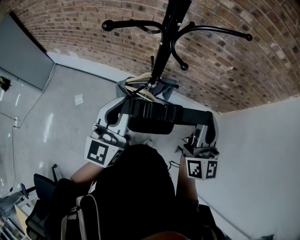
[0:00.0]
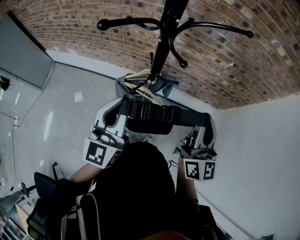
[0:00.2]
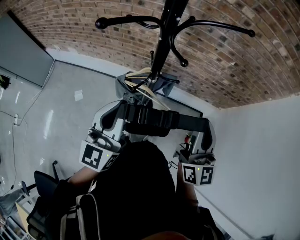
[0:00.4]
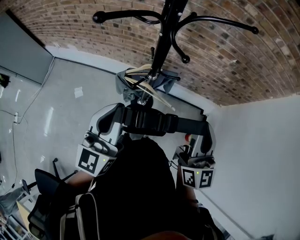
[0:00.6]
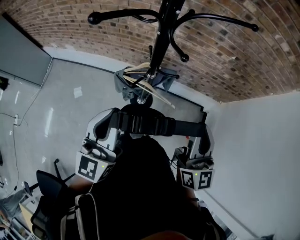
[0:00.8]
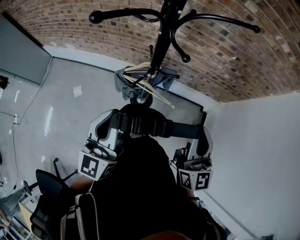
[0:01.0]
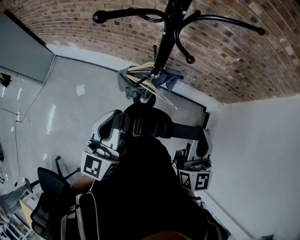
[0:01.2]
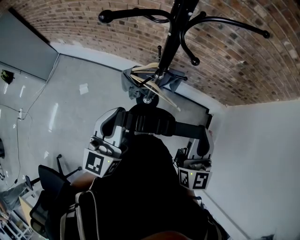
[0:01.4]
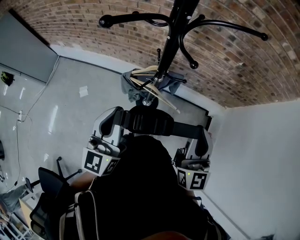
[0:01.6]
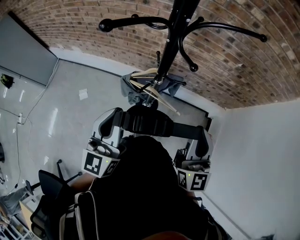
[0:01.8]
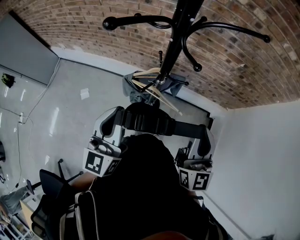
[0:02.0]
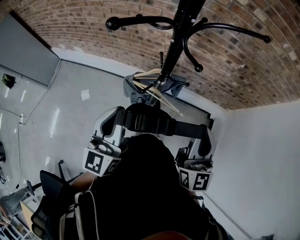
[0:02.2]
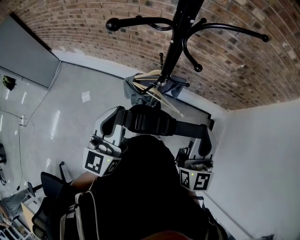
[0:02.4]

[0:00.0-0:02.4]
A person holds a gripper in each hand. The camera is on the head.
0:00.0 to 0:01.2: The left gripper changes place by about 5 cm, while the right gripper goes about 5 cm backward.
0:01.2 to 0:02.4: The grippers move only a little.

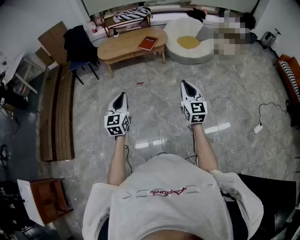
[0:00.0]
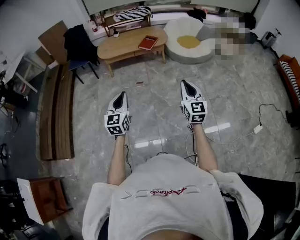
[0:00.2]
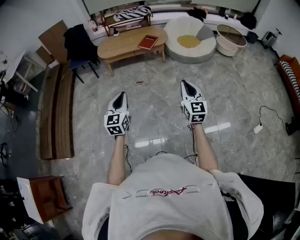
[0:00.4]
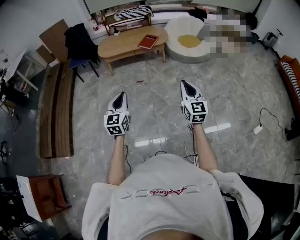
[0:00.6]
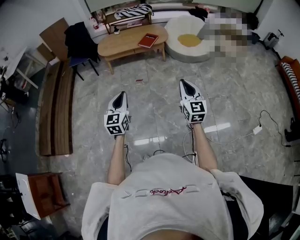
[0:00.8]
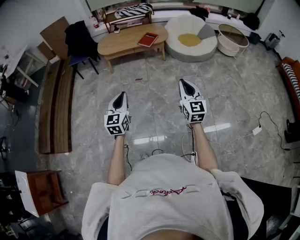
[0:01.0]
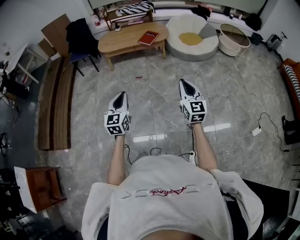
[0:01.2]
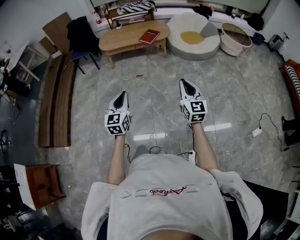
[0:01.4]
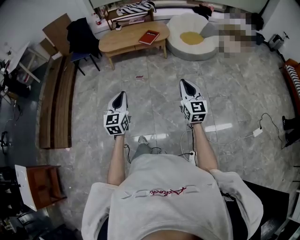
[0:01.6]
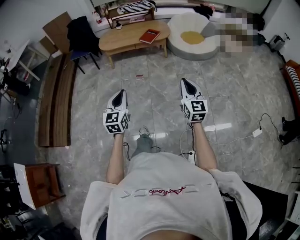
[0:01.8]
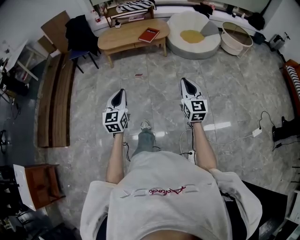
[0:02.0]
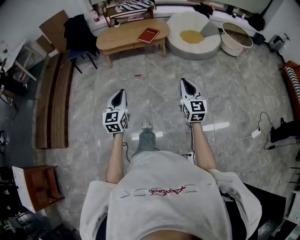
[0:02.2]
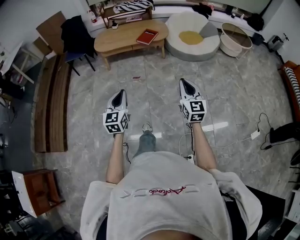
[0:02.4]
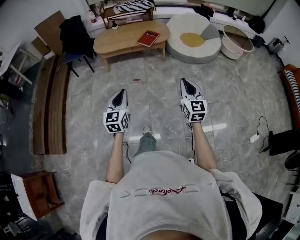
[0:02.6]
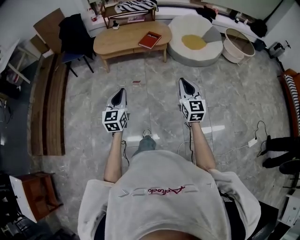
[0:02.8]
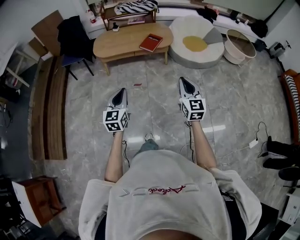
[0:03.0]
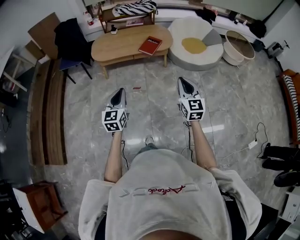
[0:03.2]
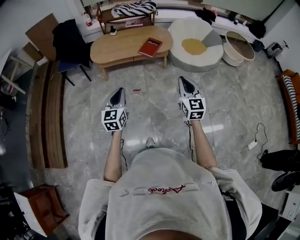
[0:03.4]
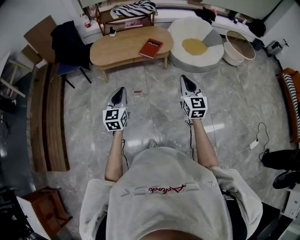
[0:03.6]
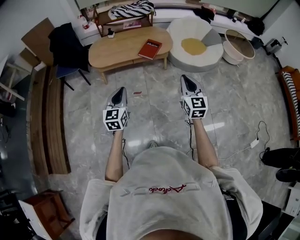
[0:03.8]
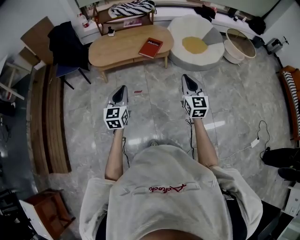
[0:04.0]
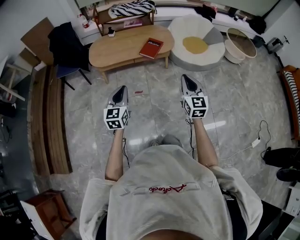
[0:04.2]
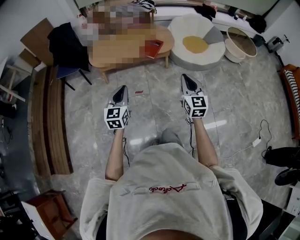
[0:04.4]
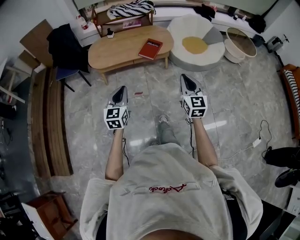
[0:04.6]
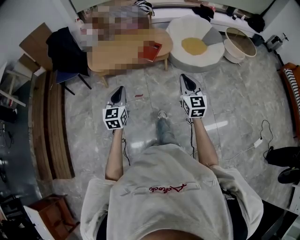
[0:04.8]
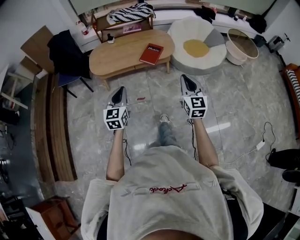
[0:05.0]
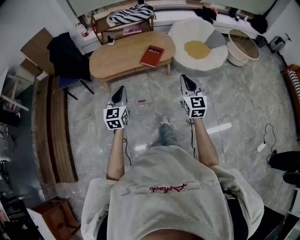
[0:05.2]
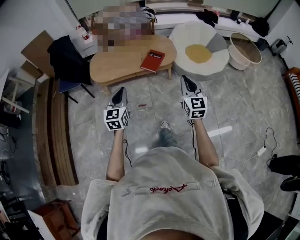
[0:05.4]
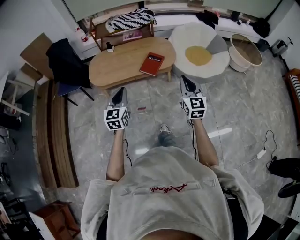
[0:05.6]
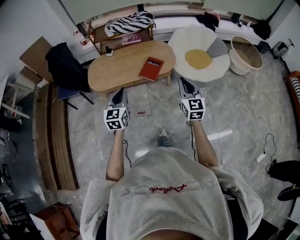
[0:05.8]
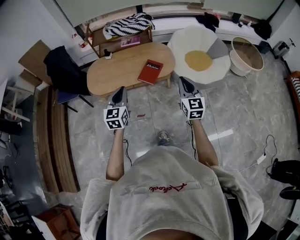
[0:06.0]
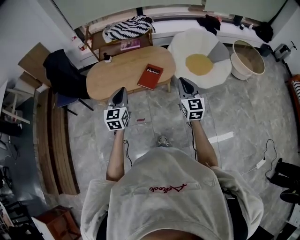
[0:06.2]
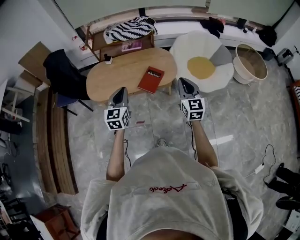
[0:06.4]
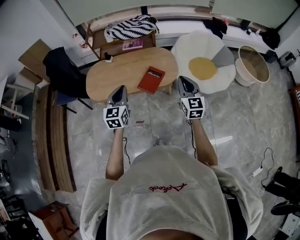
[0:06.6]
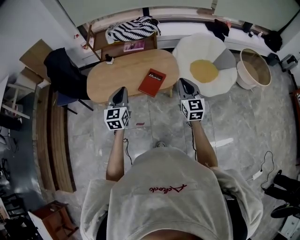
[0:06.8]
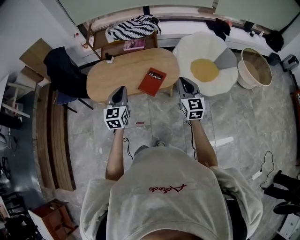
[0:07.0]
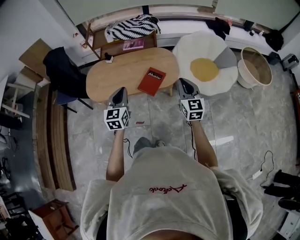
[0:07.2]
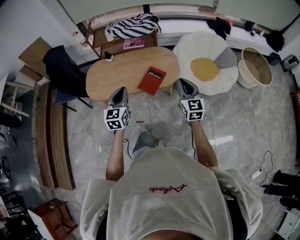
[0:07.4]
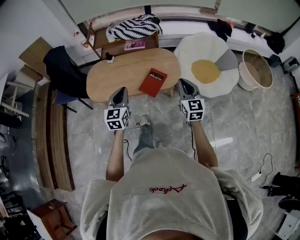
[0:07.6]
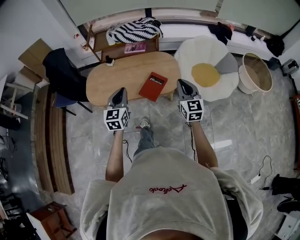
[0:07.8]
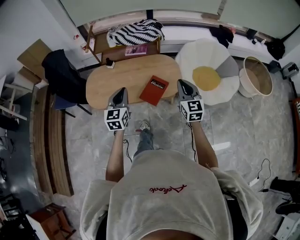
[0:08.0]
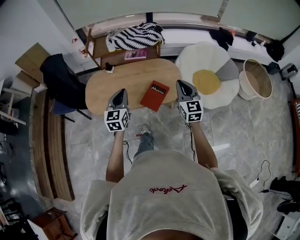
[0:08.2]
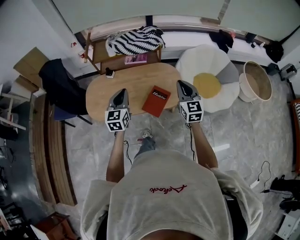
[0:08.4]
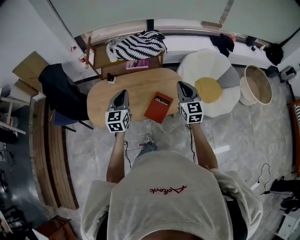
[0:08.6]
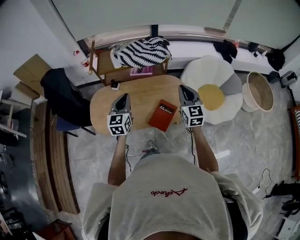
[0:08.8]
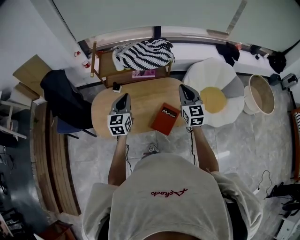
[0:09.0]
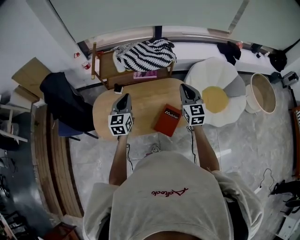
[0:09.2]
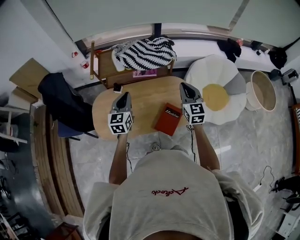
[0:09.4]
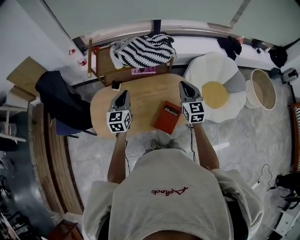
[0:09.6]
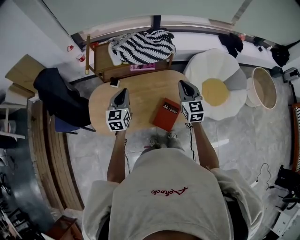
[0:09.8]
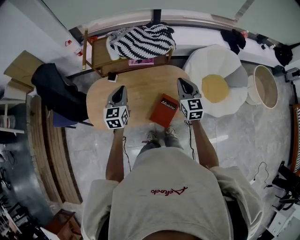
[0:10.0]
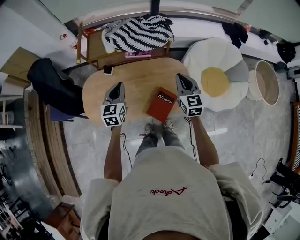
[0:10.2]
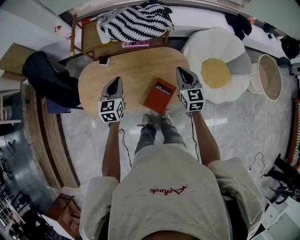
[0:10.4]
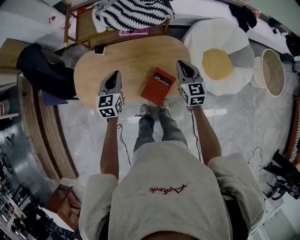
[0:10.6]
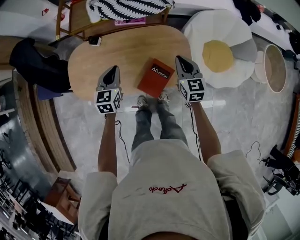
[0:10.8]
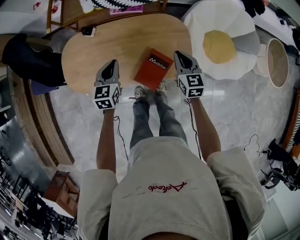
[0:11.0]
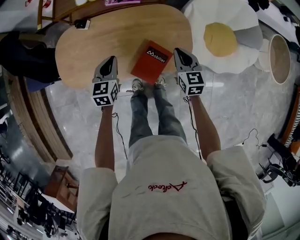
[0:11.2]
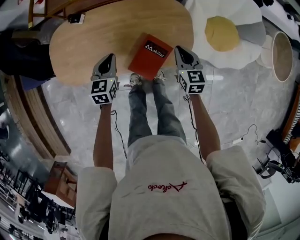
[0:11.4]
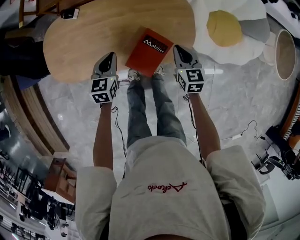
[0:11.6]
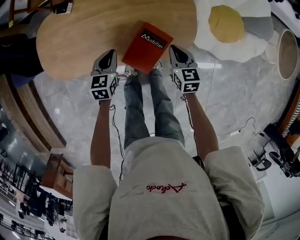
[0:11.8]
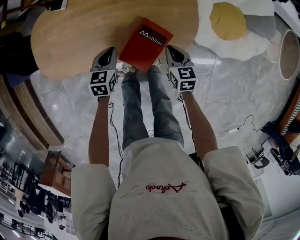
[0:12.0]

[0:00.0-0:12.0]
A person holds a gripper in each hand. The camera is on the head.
0:00.0 to 0:01.6: The grippers both shift to the right by roughly 5 cm.
0:01.6 to 0:03.0: The two grippers go some 25 cm forward.
0:03.0 to 0:04.4: The grippers both shift forward by about 15 cm.
0:04.4 to 0:06.0: The two grippers go approximately 25 cm forward.
0:06.0 to 0:07.6: The grippers both shift forward by some 15 cm.
0:07.6 to 0:09.0: The left gripper goes roughly 30 cm forward. Meanwhile the right gripper shifts roughly 30 cm forward and to the left.
0:09.0 to 0:10.4: The two grippers go roughly 10 cm downward and forward.
0:10.4 to 0:12.0: The grippers both shift downward by some 30 cm. The left gripper rotates approximately 20 degrees; the right gripper changes its angle by approximately 30 degrees.

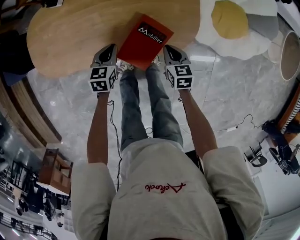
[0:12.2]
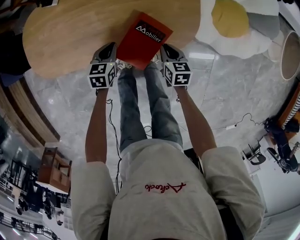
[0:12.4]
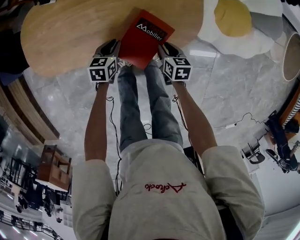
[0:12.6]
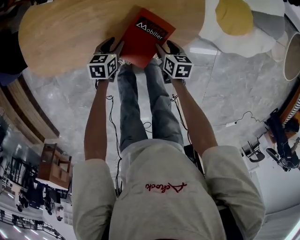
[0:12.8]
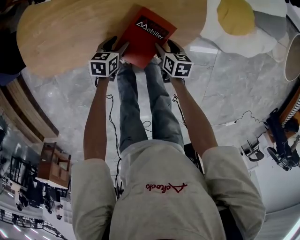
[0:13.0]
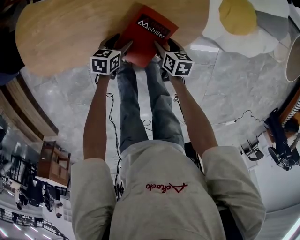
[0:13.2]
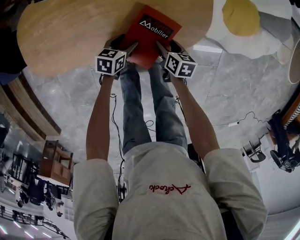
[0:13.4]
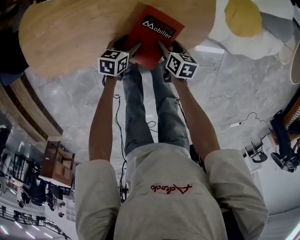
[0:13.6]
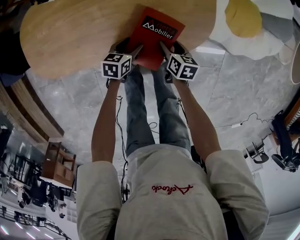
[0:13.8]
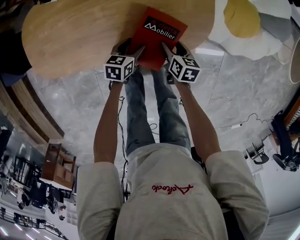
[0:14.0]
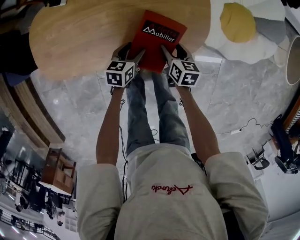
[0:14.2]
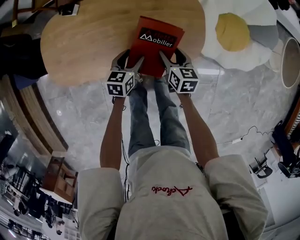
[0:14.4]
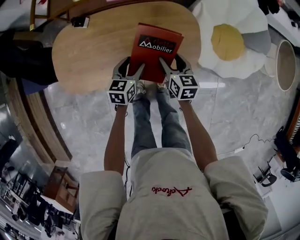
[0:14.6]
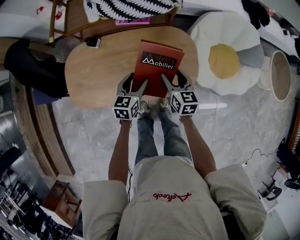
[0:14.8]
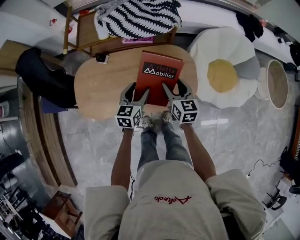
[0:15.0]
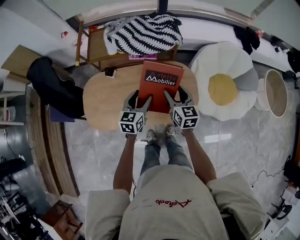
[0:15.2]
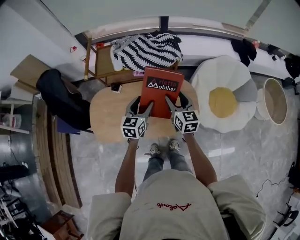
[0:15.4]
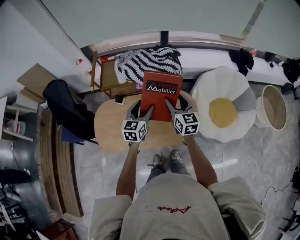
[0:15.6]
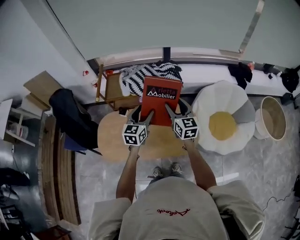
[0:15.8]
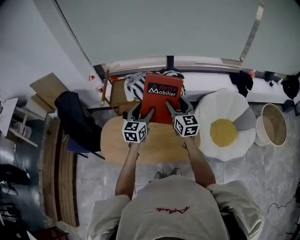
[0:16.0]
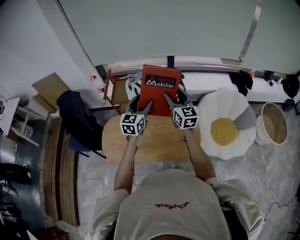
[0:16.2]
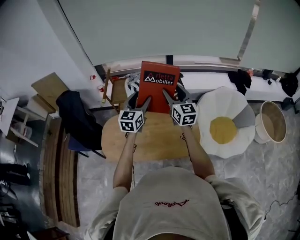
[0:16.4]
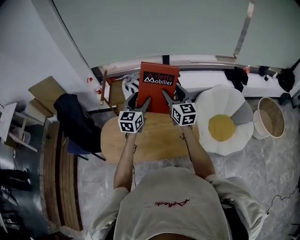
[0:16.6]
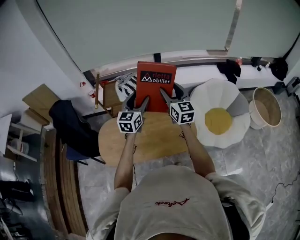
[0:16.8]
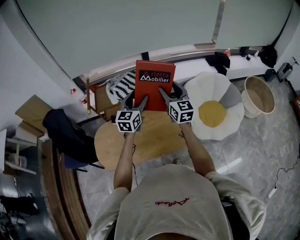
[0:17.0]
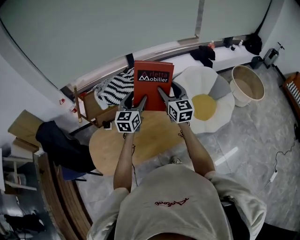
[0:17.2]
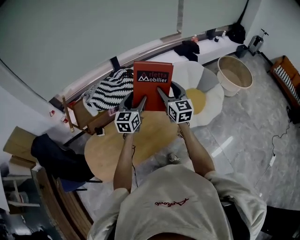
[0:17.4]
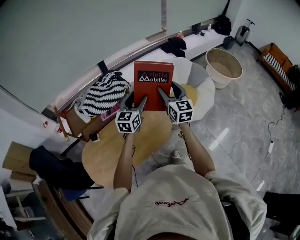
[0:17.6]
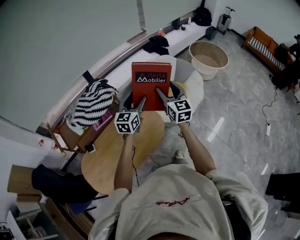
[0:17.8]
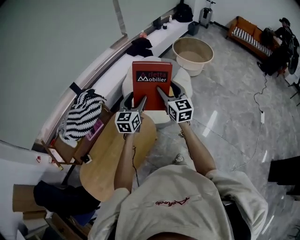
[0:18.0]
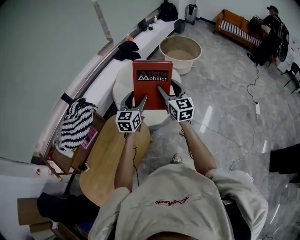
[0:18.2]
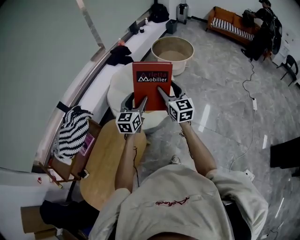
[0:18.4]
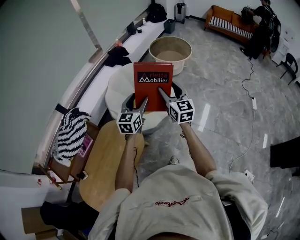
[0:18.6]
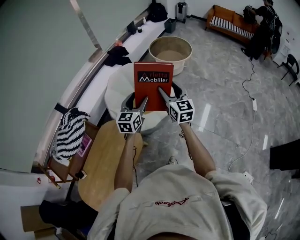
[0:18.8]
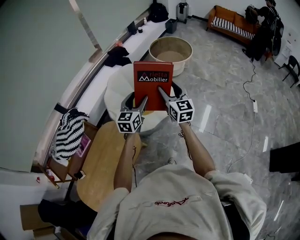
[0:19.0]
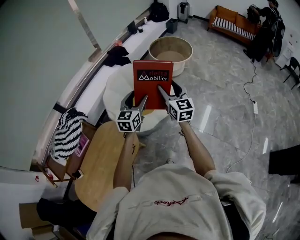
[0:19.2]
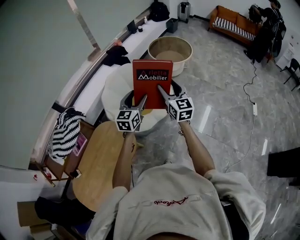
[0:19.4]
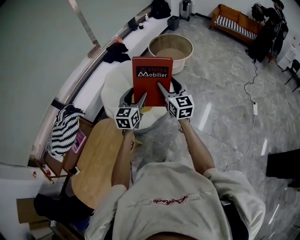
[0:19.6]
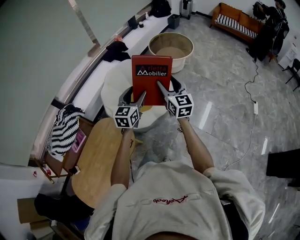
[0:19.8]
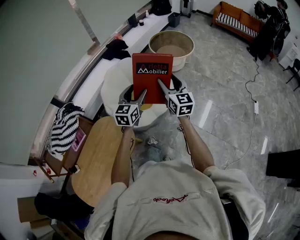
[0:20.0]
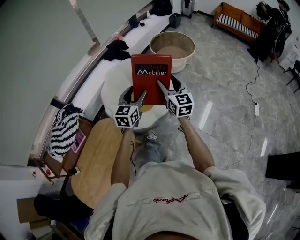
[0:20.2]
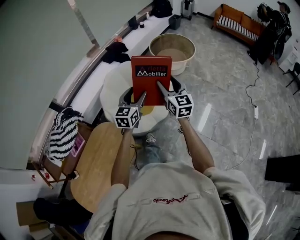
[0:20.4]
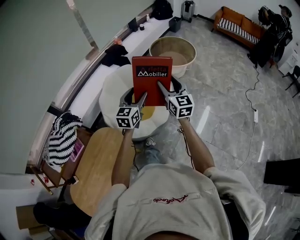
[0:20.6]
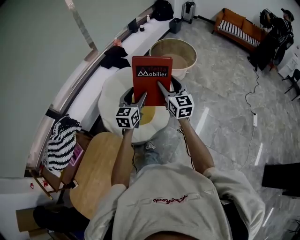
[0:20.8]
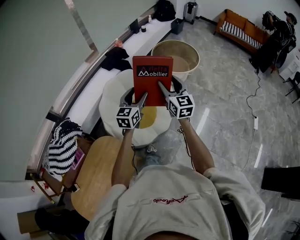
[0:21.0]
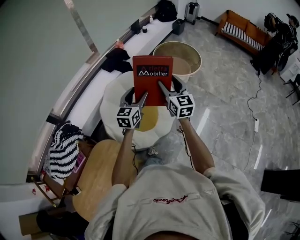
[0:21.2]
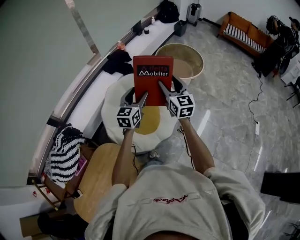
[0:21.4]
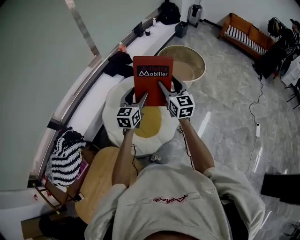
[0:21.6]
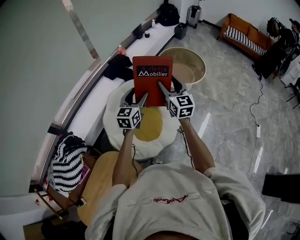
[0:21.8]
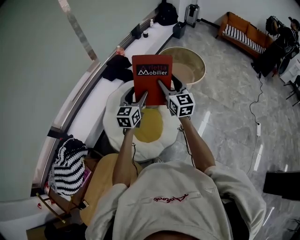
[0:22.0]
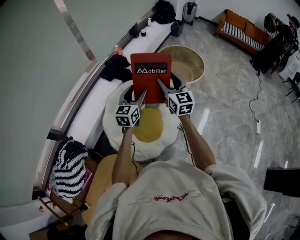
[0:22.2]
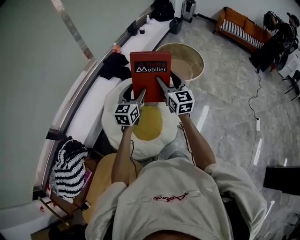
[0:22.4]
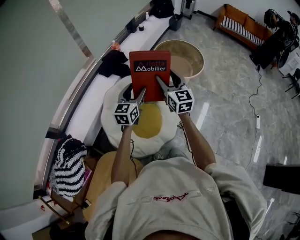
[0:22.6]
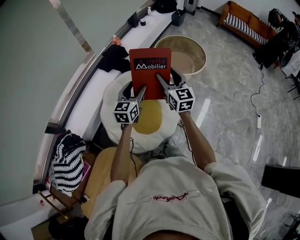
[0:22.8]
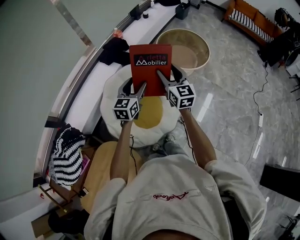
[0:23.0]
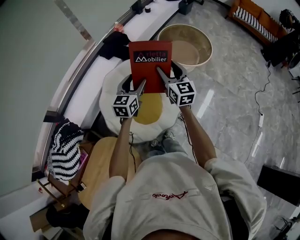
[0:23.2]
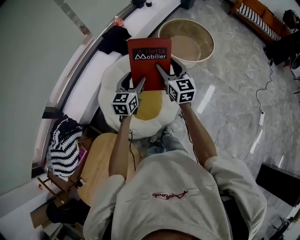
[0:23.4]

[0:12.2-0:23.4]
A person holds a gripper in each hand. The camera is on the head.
0:12.2 to 0:13.8: The left gripper shifts approximately 15 cm downward and to the right, turns by roughly 20 degrees, and opens up. The right gripper is displaced downward by roughly 10 cm, rotates about 30 degrees, and opens up.
0:13.8 to 0:15.4: Both grippers move upward, about 50 cm. The left gripper swivels approximately 40 degrees, while the right gripper tilts its fingers some 40 degrees upward.
0:15.4 to 0:17.0: Both grippers move upward, some 20 cm. The left gripper changes its angle by some 20 degrees; the right gripper swivels some 20 degrees.
0:17.0 to 0:18.6: The two grippers travel together, about 50 cm. The left gripper turns by about 50 degrees, while the right gripper rotates some 50 degrees.
0:18.6 to 0:20.2: The grippers both shift forward and to the right by some 10 cm.
0:20.2 to 0:21.8: Both grippers move forward, roughly 30 cm.
0:21.8 to 0:23.4: The right gripper goes approximately 10 cm forward and downward. Meanwhile the left gripper heads downward and forward, covering about 10 cm.
